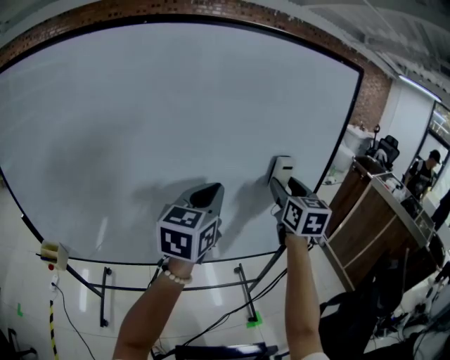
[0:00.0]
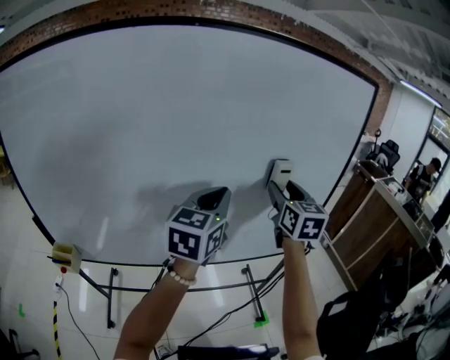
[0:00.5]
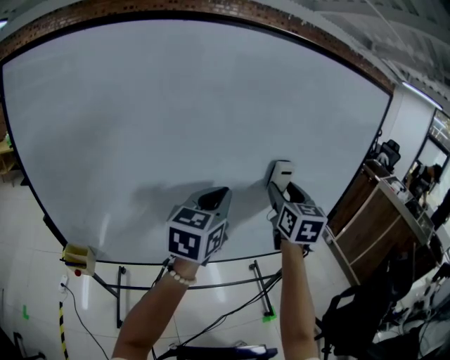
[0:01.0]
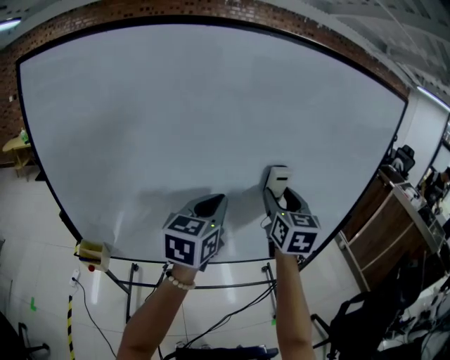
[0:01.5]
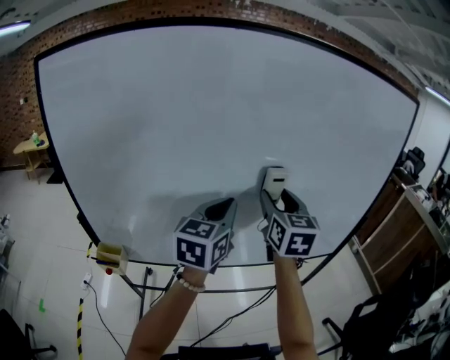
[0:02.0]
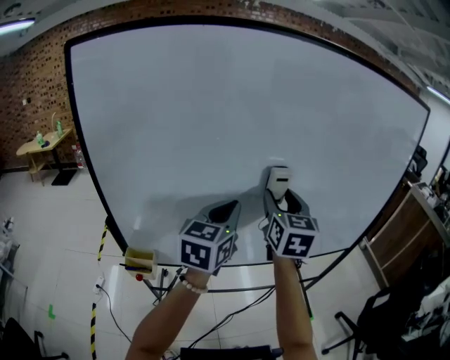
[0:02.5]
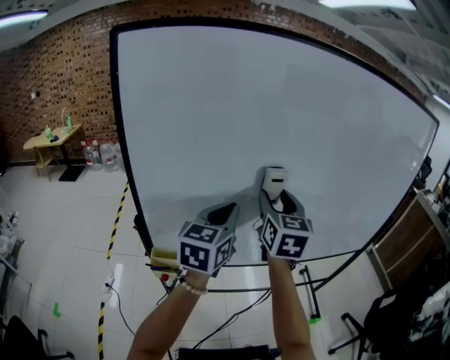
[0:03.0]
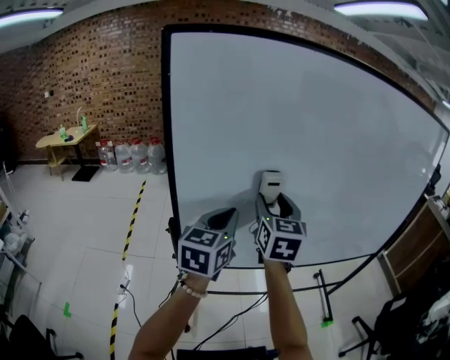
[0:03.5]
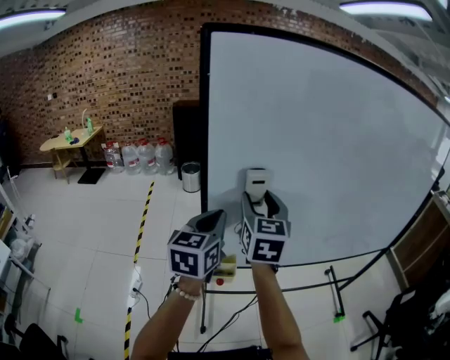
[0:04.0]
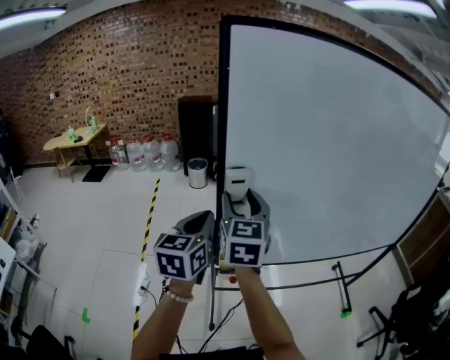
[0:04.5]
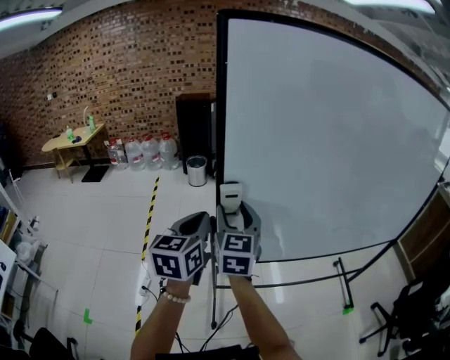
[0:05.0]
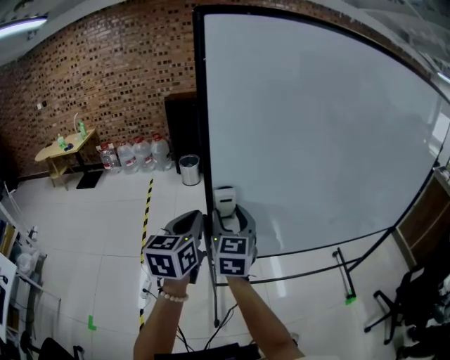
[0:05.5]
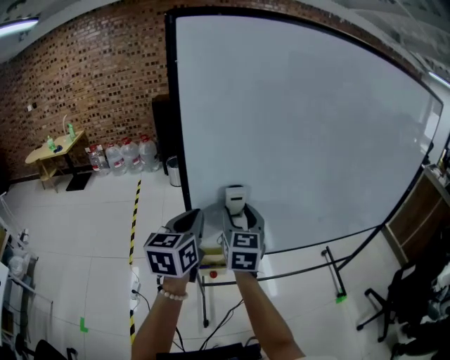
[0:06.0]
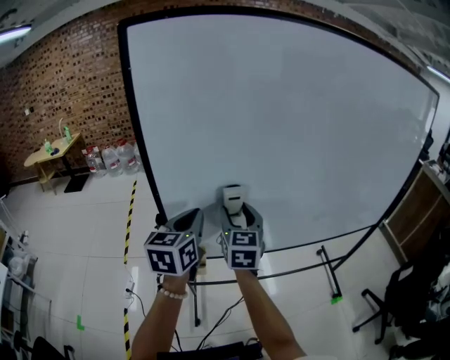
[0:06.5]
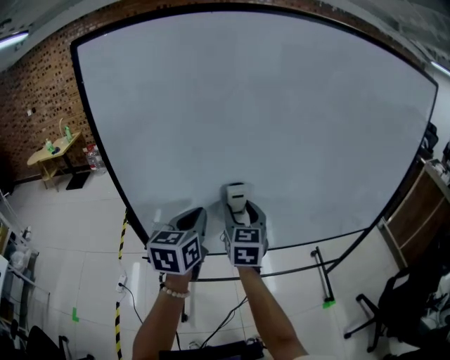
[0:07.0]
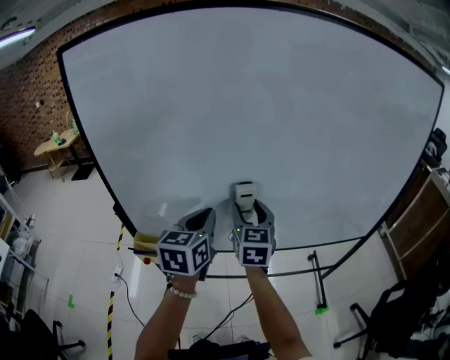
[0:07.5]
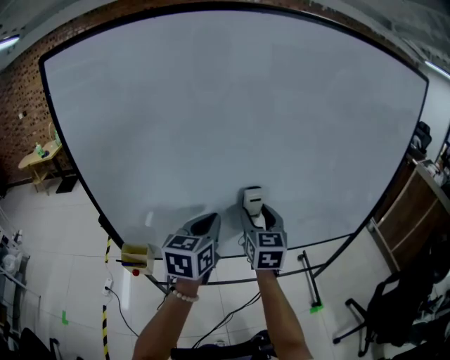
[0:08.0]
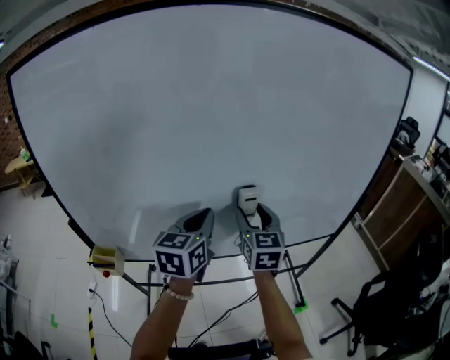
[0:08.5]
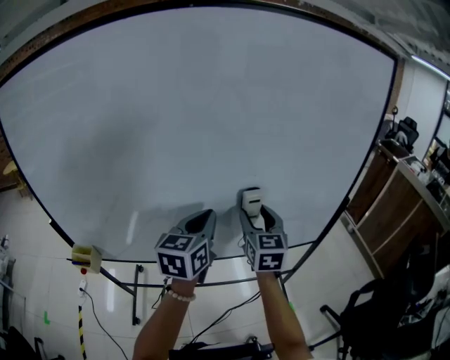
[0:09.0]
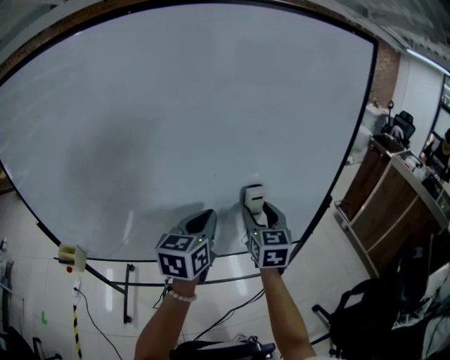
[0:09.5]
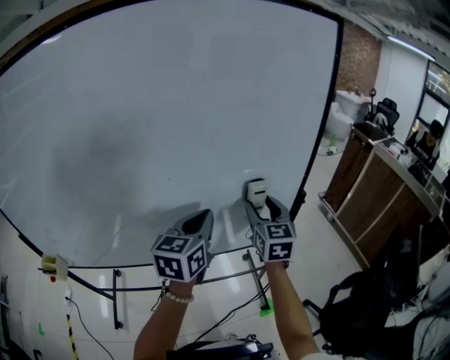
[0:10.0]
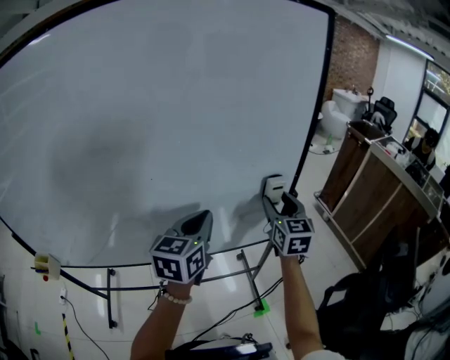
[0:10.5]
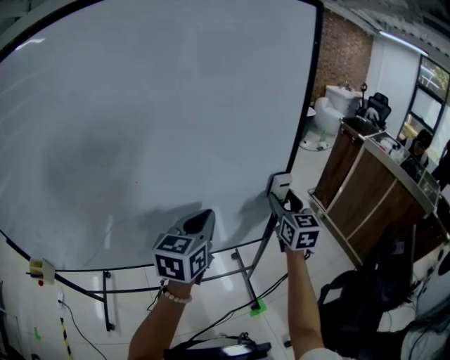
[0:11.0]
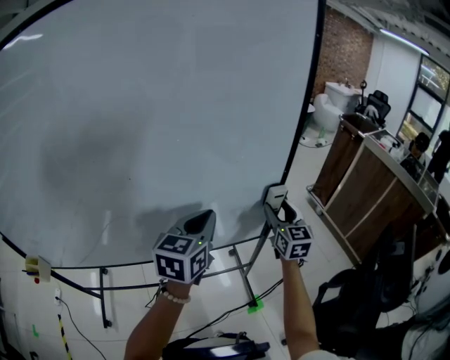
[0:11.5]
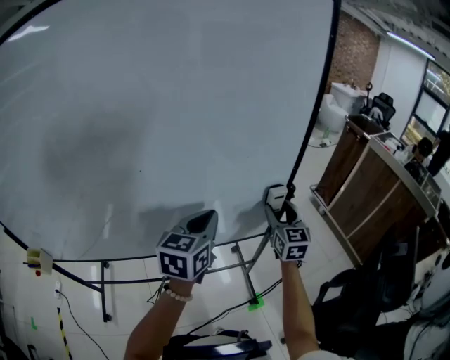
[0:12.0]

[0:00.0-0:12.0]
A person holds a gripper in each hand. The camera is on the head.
0:00.0 to 0:02.0: Both grippers travel together to the left, some 30 cm.
0:02.0 to 0:04.0: The pair of grippers is taken to the left, some 50 cm.
0:04.0 to 0:06.0: The left gripper goes to the left and returns, about 10 cm each way. Meanwhile the right gripper shifts some 10 cm downward, and goes to the left and returns, about 10 cm each way.
0:06.0 to 0:08.0: The grippers both shift to the right by about 40 cm.
0:08.0 to 0:10.0: The two grippers travel together, to the right, about 50 cm.
0:10.0 to 0:12.0: The left gripper shifts roughly 10 cm to the right and downward. Meanwhile the right gripper travels to the right and downward by approximately 15 cm.

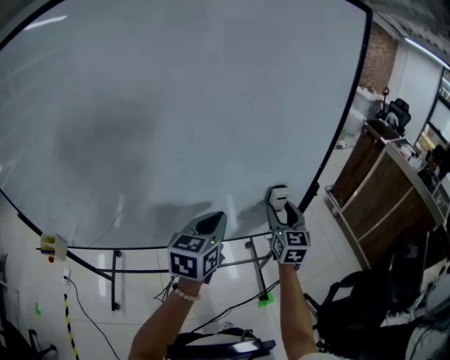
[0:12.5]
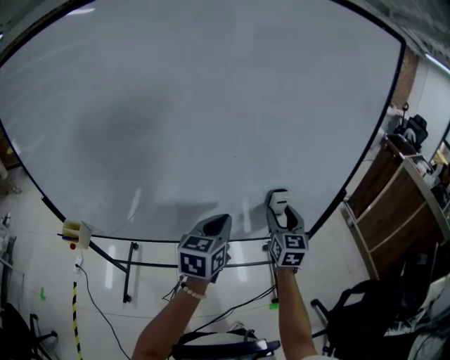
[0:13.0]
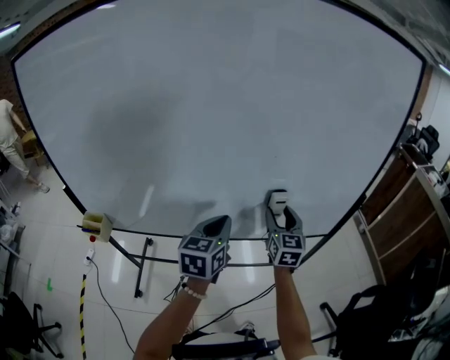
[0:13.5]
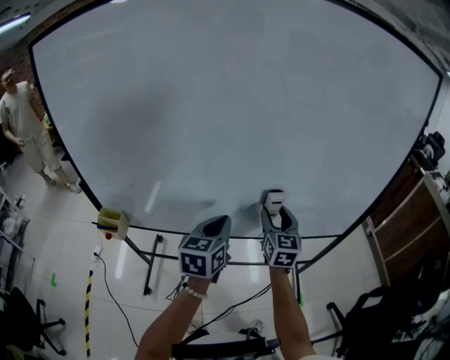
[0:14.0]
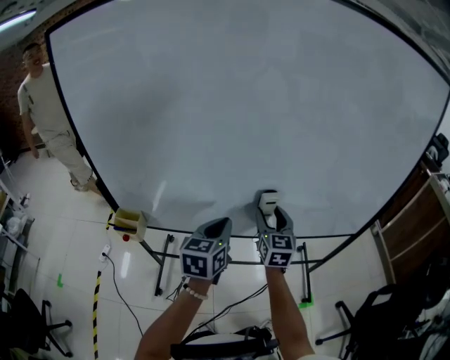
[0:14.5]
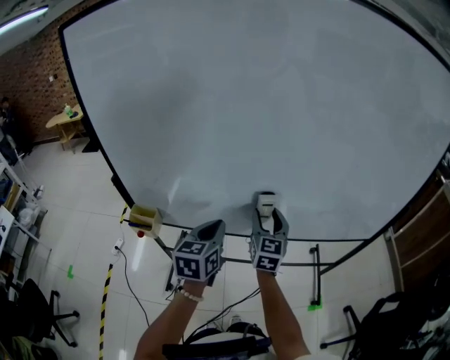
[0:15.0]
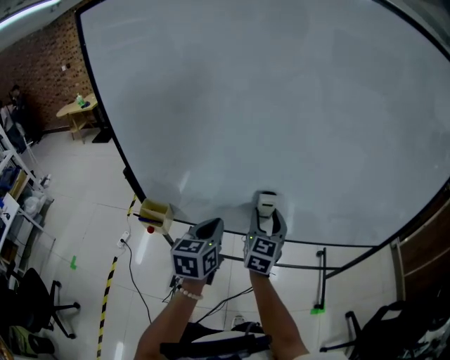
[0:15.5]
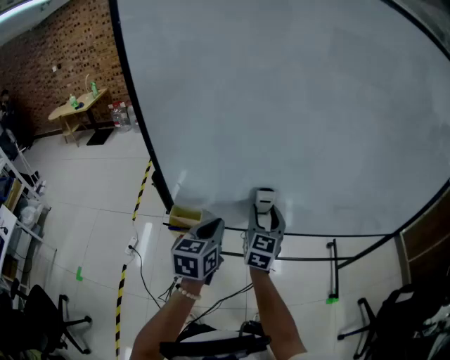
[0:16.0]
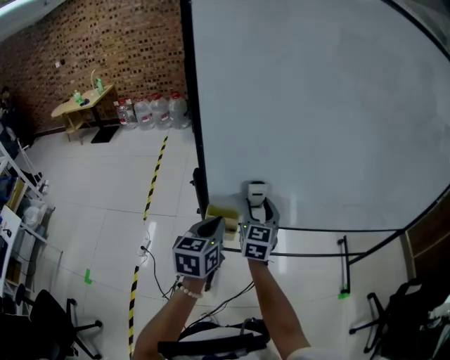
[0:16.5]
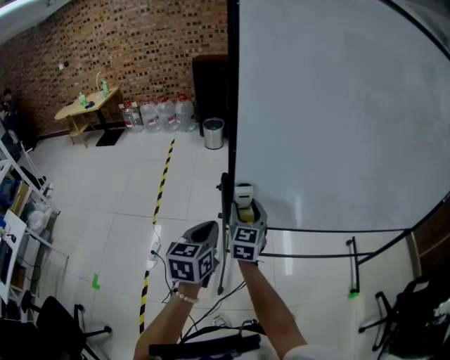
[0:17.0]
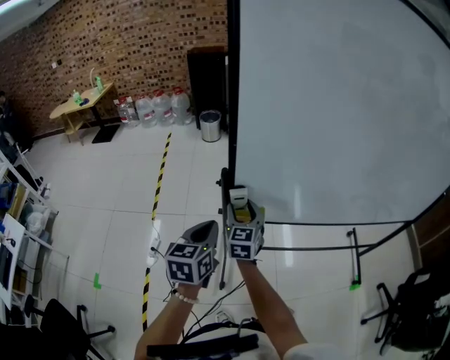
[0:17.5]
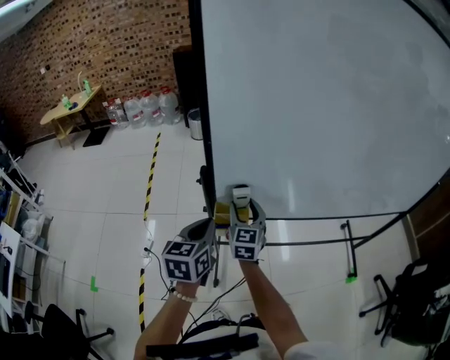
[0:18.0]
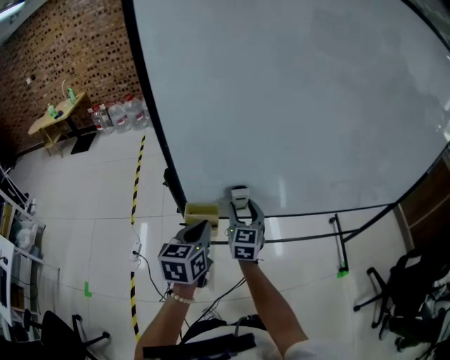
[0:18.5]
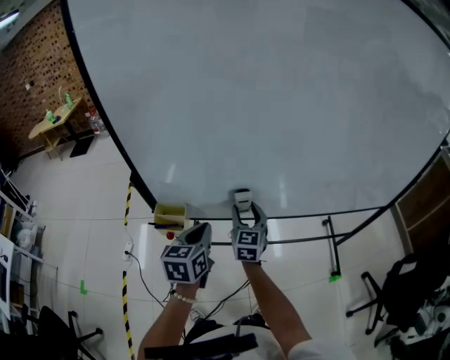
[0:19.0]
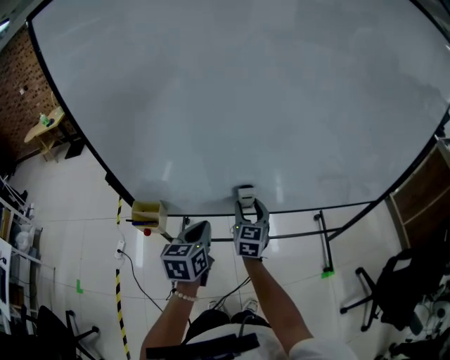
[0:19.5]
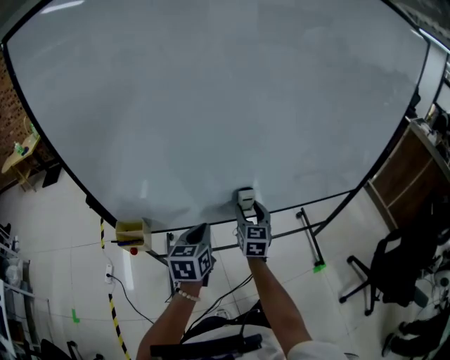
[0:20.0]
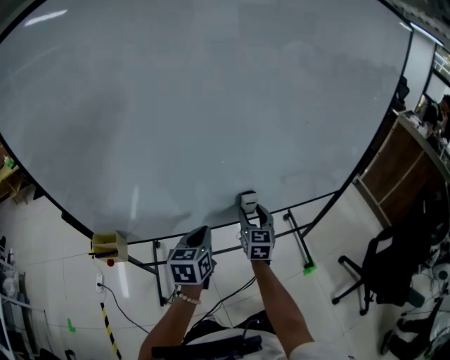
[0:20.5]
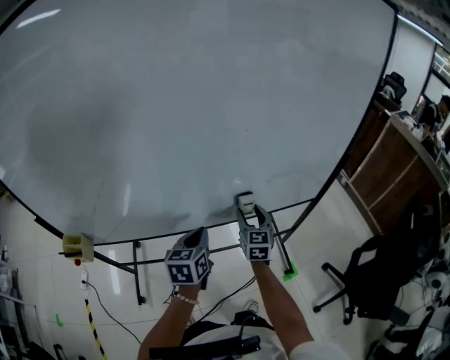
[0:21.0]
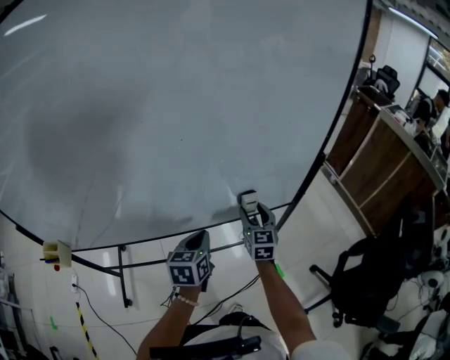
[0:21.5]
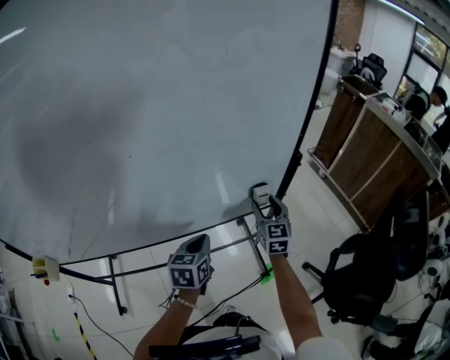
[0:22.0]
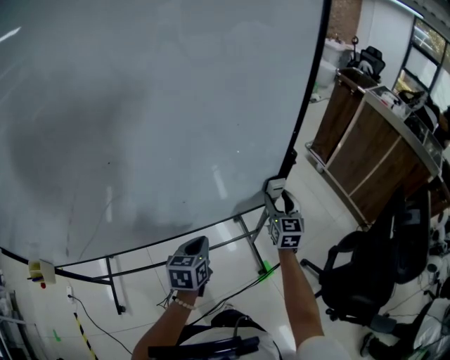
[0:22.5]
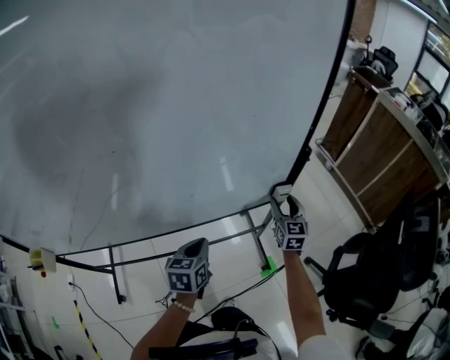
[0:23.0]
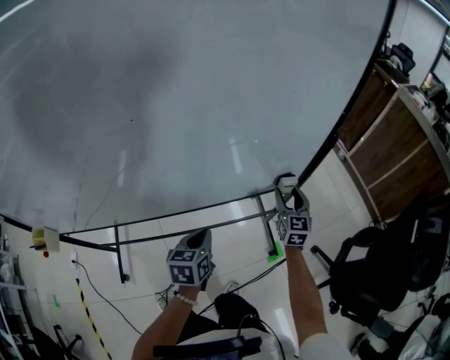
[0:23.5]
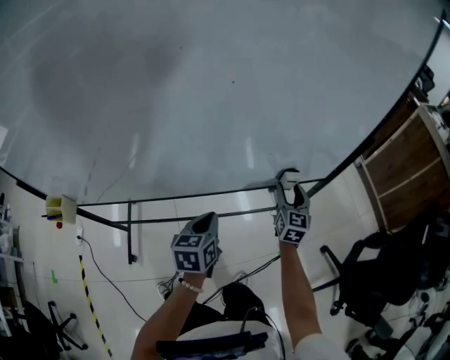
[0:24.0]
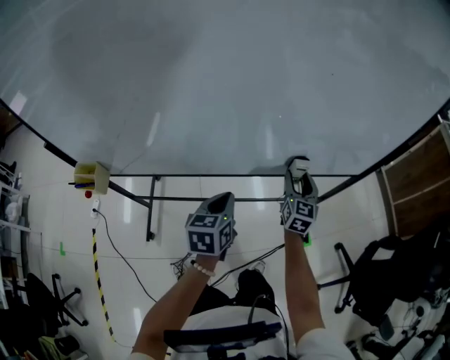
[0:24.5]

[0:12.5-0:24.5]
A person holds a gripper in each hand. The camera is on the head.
0:12.5 to 0:14.5: The two grippers travel together, to the left, about 40 cm.
0:14.5 to 0:16.5: The two grippers travel together, to the left, some 40 cm.
0:16.5 to 0:18.5: The left gripper travels to the left and back again, roughly 10 cm each way. Meanwhile the right gripper is displaced downward by some 5 cm, and reaches roughly 15 cm to the left, then returns.
0:18.5 to 0:20.5: Both grippers are carried to the right, roughly 40 cm.
0:20.5 to 0:22.5: The pair of grippers is taken to the right, some 50 cm.
0:22.5 to 0:24.5: The right gripper goes roughly 35 cm to the left. Meanwhile the left gripper heads to the left and backward, covering about 30 cm.

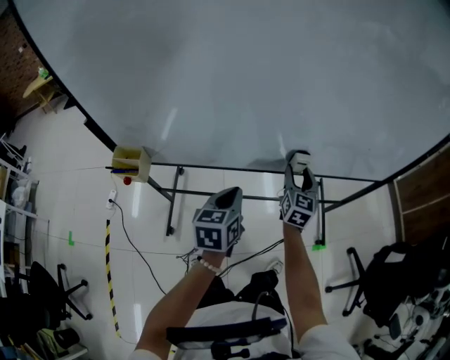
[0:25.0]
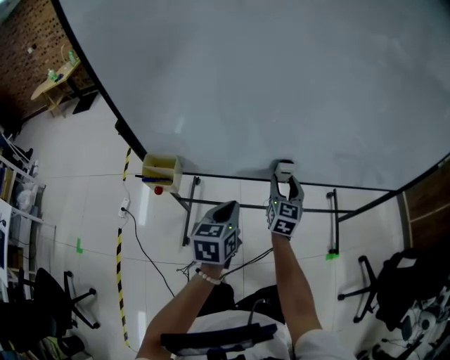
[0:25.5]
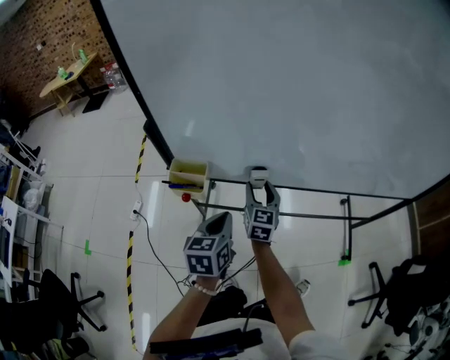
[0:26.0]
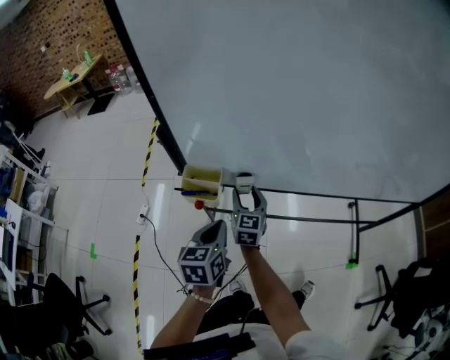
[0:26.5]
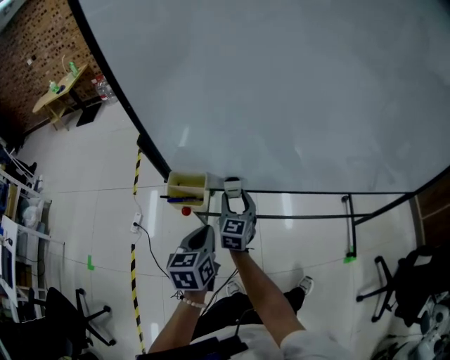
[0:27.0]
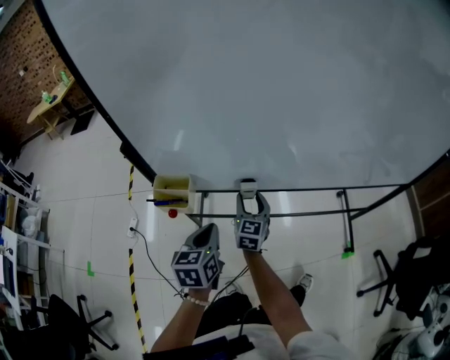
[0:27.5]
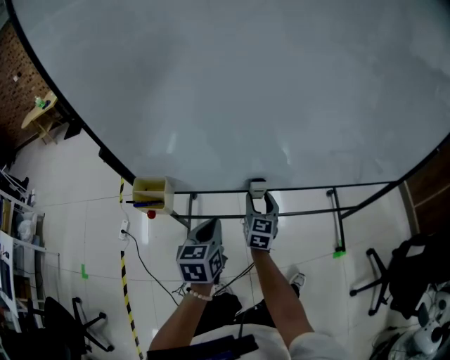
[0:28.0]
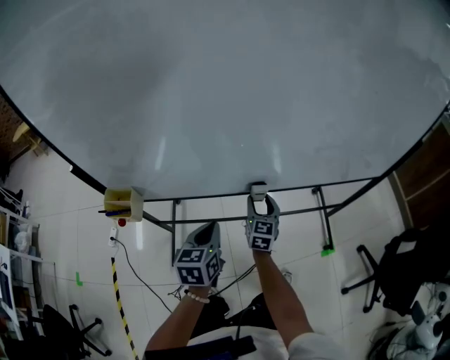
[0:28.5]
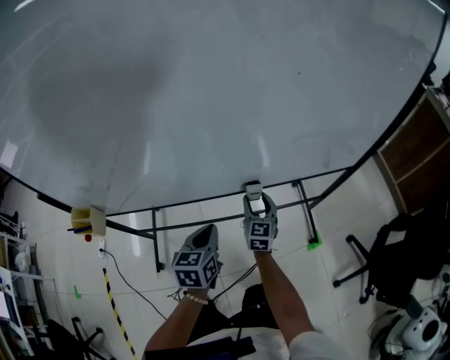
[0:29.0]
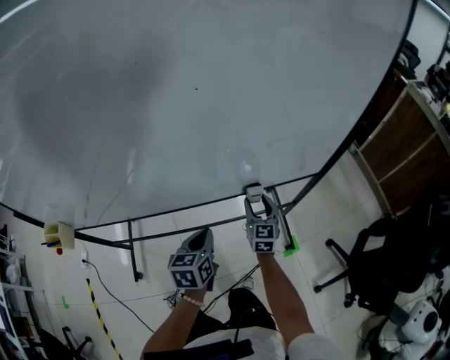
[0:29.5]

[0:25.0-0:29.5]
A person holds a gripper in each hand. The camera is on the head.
0:25.0 to 0:27.0: Both grippers travel together to the left, about 40 cm.
0:27.0 to 0:29.5: The pair of grippers is taken to the right, roughly 70 cm.
